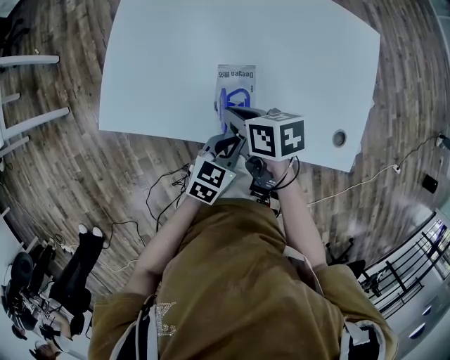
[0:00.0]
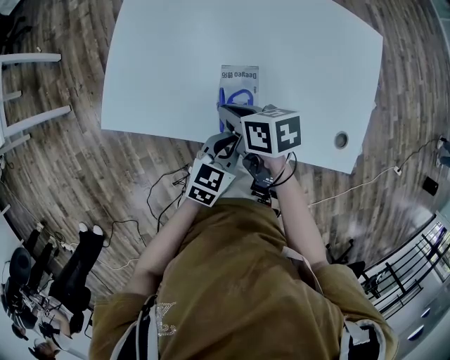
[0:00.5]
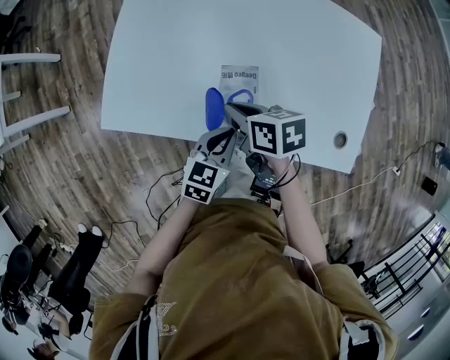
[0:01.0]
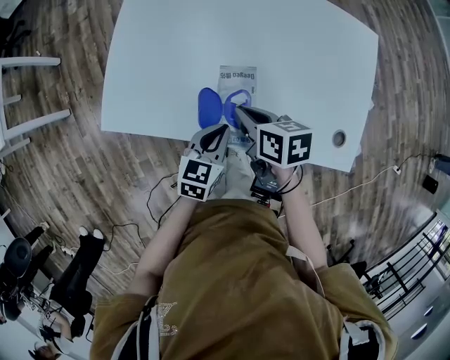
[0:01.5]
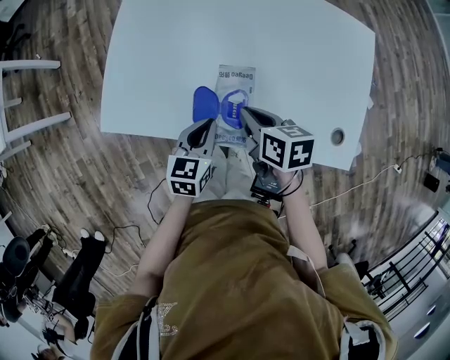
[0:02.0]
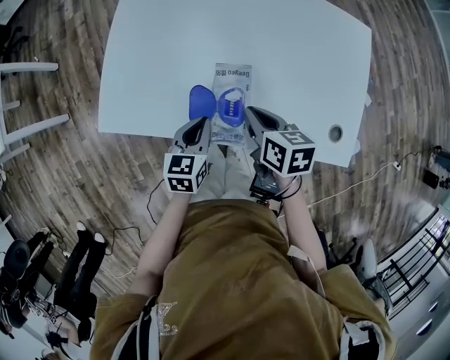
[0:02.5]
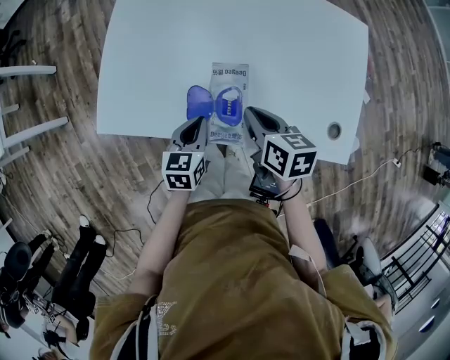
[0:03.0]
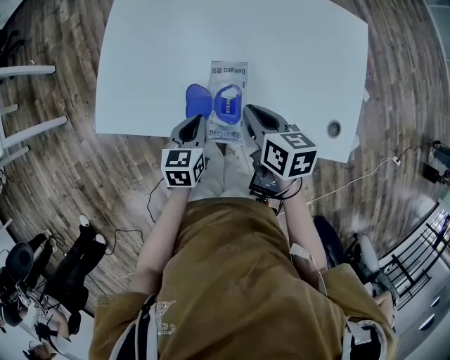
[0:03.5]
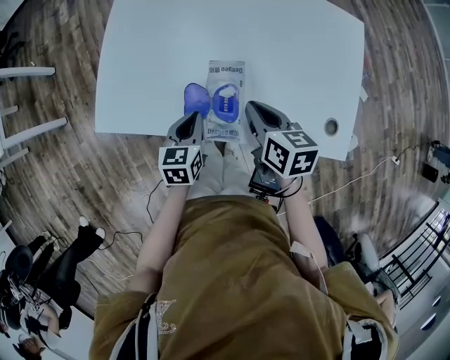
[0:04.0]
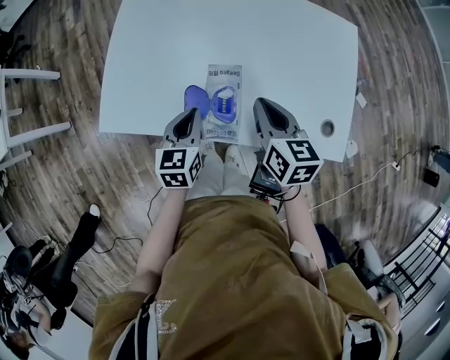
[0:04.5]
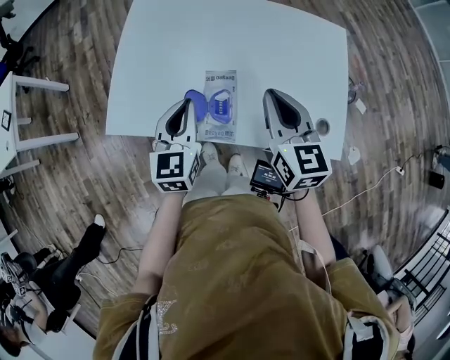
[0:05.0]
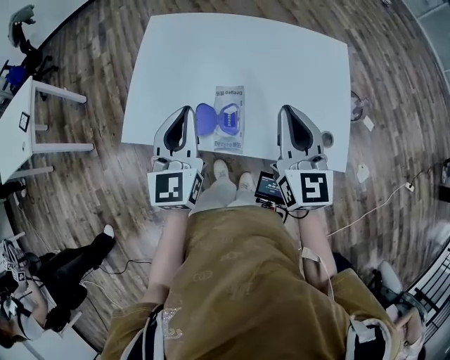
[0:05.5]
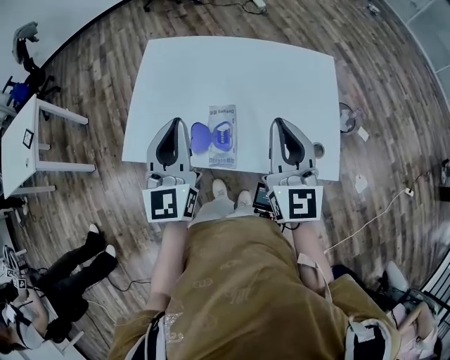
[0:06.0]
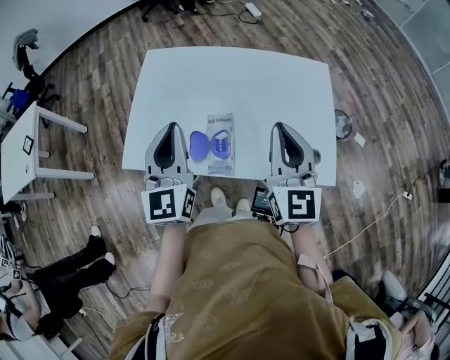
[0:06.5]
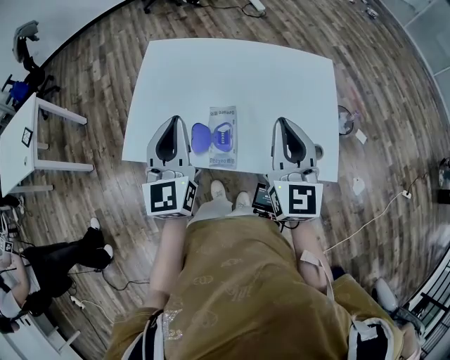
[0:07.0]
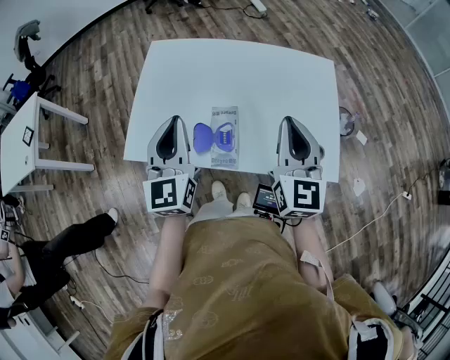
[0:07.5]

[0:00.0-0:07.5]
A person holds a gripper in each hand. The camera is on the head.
0:00.0 to 0:02.0: The left gripper is displaced to the left and forward by some 10 cm.
0:02.0 to 0:04.0: The grippers move only a little.
0:04.0 to 0:05.5: Both grippers move upward, about 25 cm. The left gripper tilts its fingers roughly 30 degrees upward, while the right gripper points its fingers about 30 degrees further upward.
0:05.5 to 0:07.5: The grippers make only small movements.

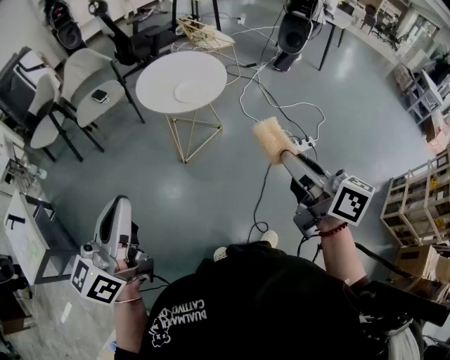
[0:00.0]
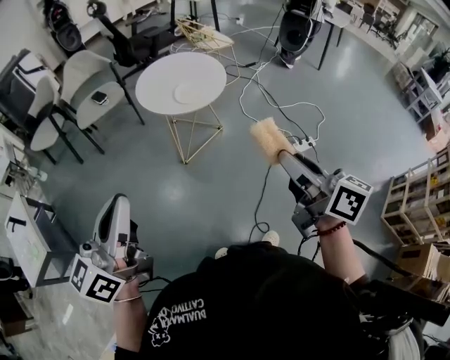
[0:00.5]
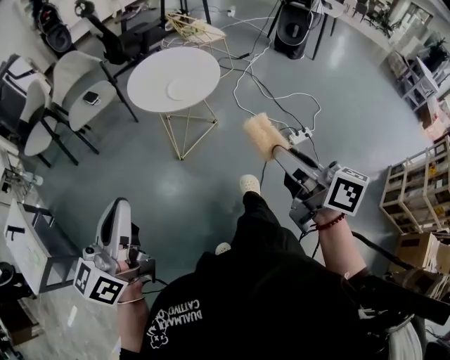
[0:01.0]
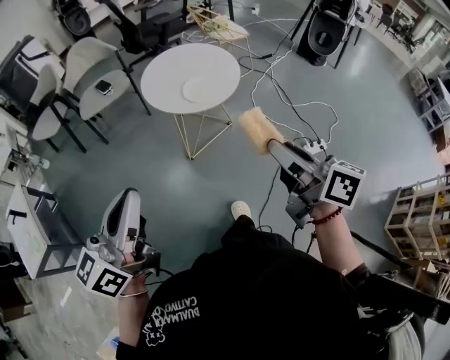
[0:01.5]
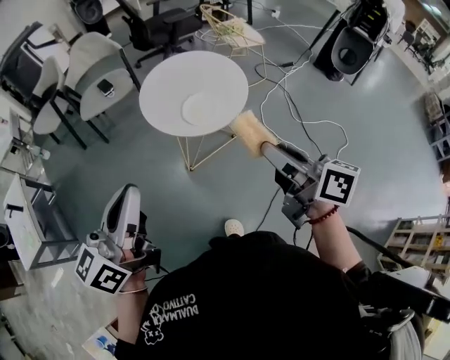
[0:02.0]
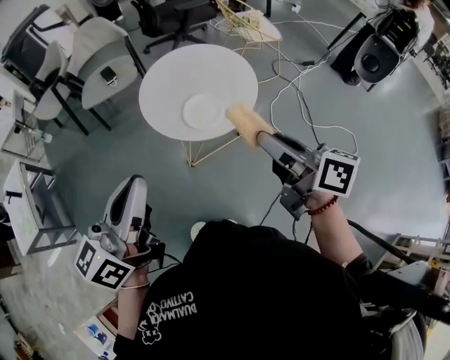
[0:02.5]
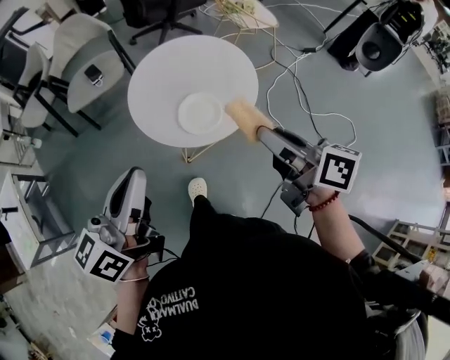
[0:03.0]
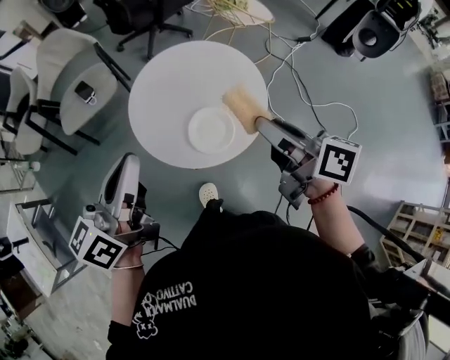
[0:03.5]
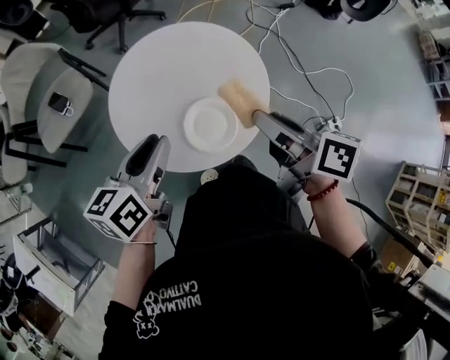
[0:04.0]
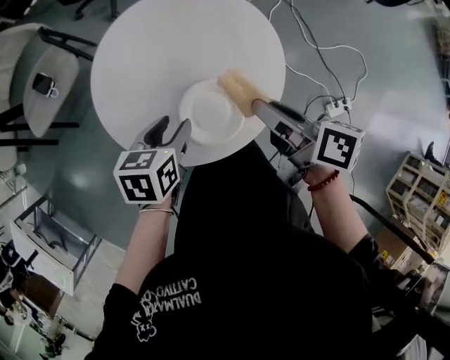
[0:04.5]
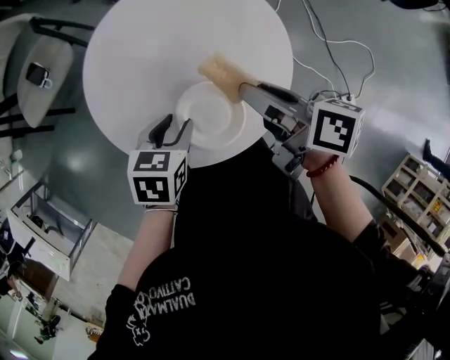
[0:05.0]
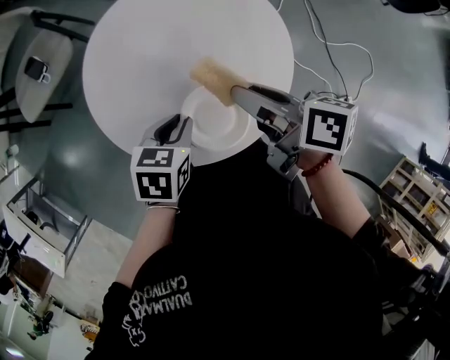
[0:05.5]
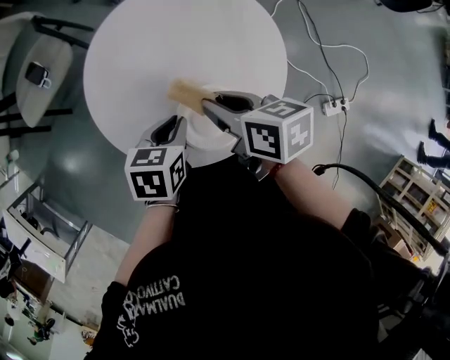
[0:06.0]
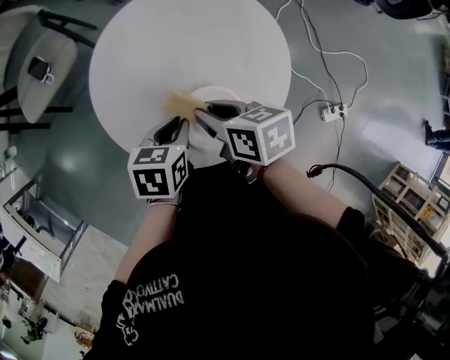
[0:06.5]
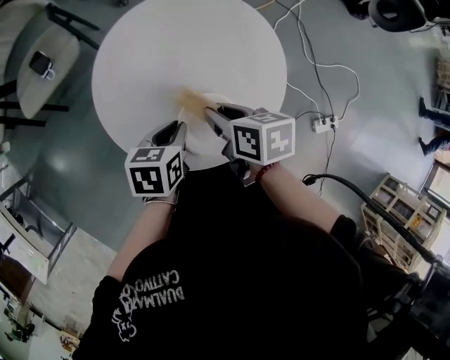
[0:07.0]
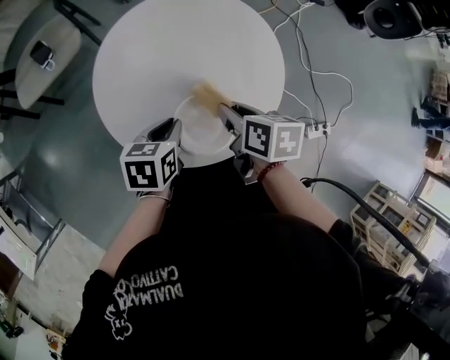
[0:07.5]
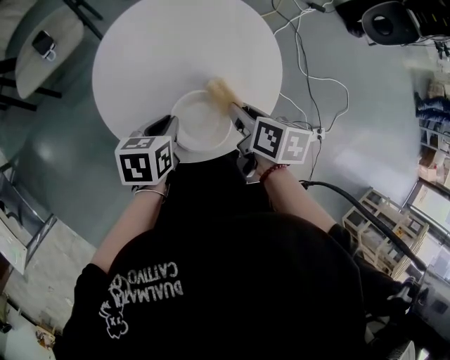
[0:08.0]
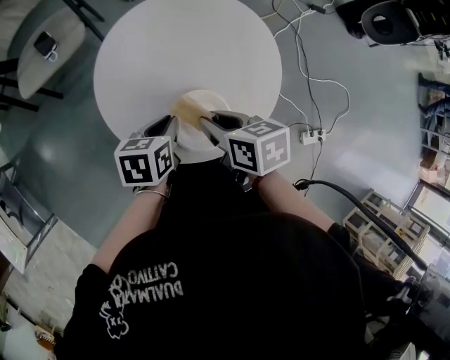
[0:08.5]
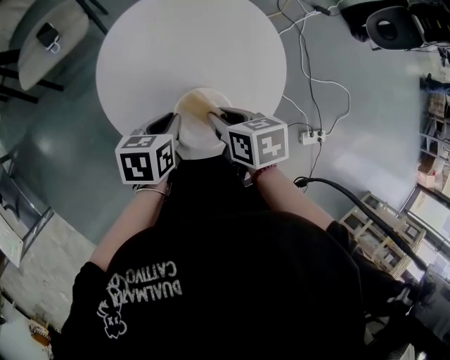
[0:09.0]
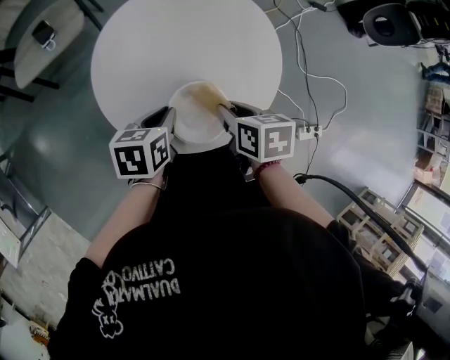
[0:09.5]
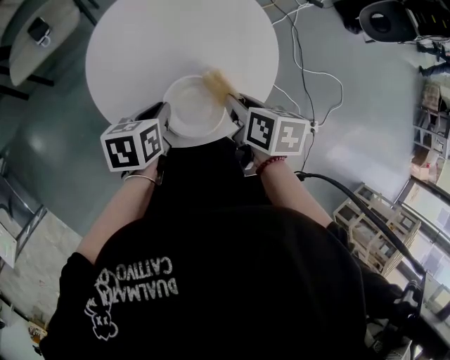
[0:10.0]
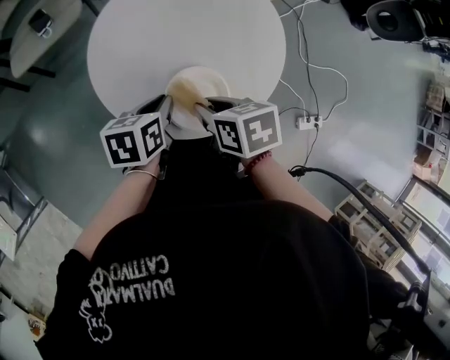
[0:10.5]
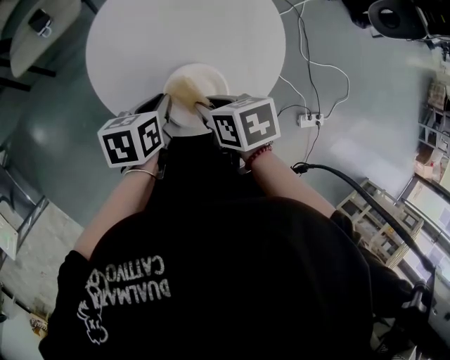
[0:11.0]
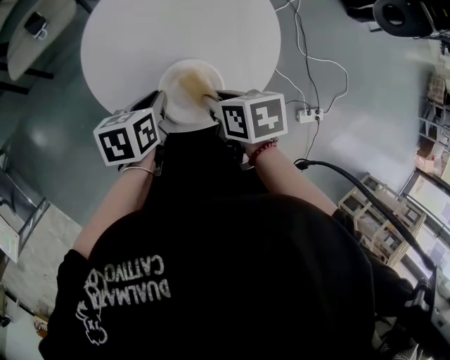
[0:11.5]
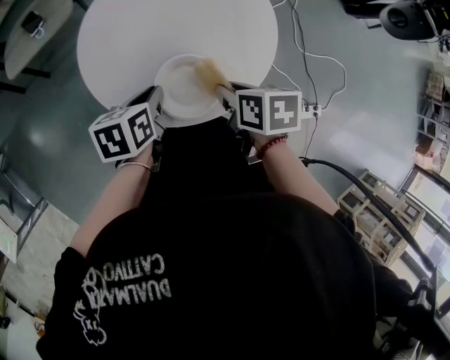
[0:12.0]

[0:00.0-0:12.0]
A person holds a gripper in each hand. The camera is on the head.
0:00.0 to 0:02.0: The two grippers go some 25 cm forward.
0:02.0 to 0:04.0: The two grippers go about 40 cm forward and downward. The left gripper rotates about 30 degrees, and opens.
0:04.0 to 0:06.0: The right gripper travels downward and forward by about 15 cm, and swivels approximately 30 degrees. The left gripper heads downward and to the right, covering roughly 20 cm, tips its fingers downward by approximately 30 degrees, and opens, then closes once more.
0:06.0 to 0:08.0: The right gripper moves roughly 5 cm, and swivels some 20 degrees.
0:08.0 to 0:10.0: The right gripper goes to the left and returns, some 10 cm each way.
0:10.0 to 0:12.0: The right gripper reaches about 10 cm to the left, then returns.

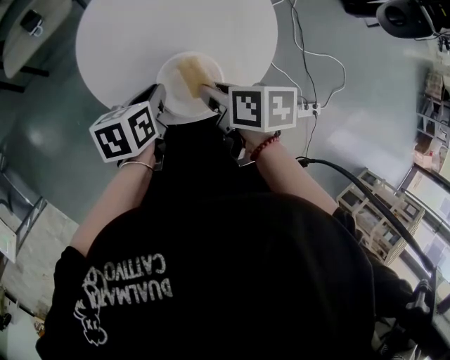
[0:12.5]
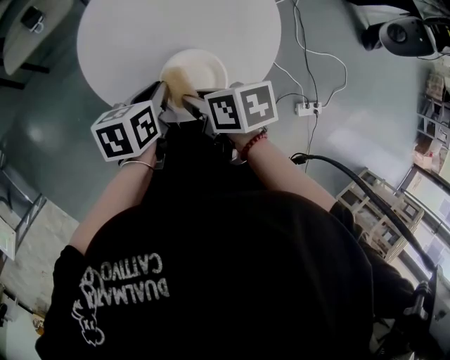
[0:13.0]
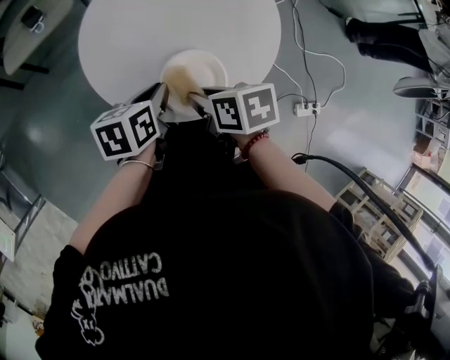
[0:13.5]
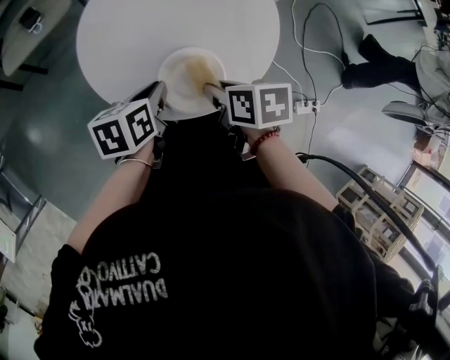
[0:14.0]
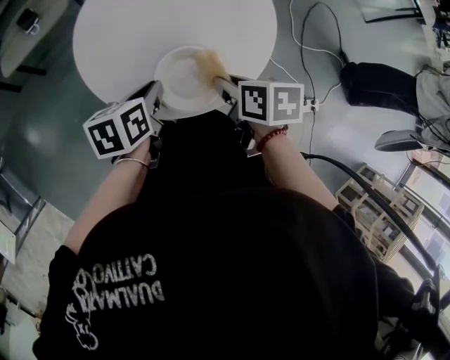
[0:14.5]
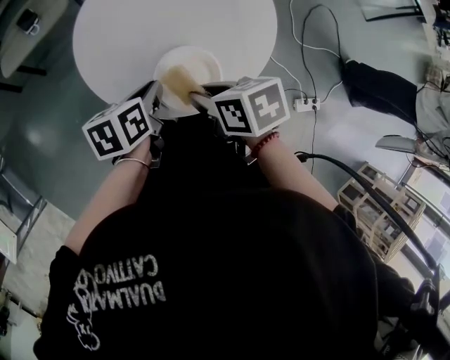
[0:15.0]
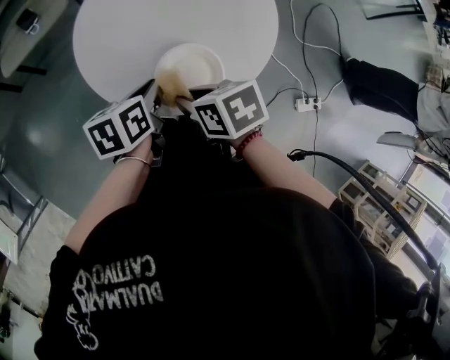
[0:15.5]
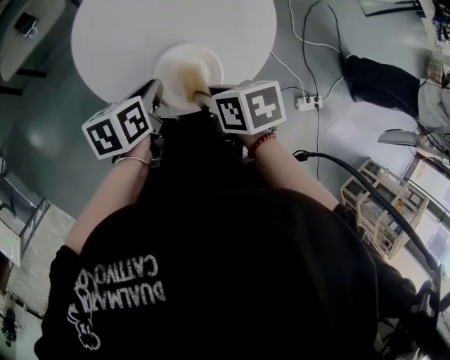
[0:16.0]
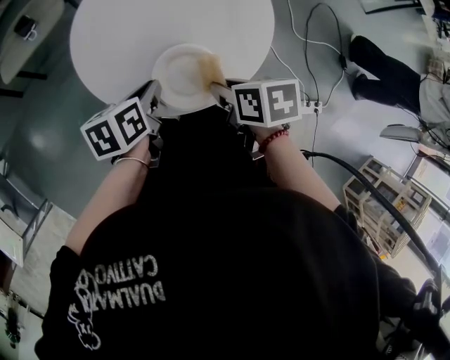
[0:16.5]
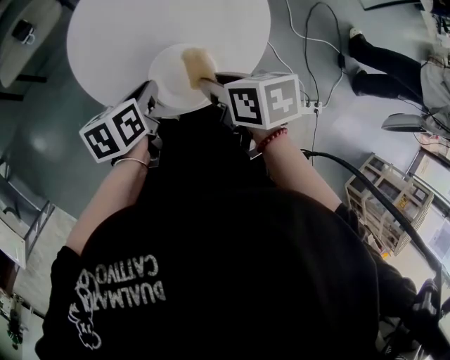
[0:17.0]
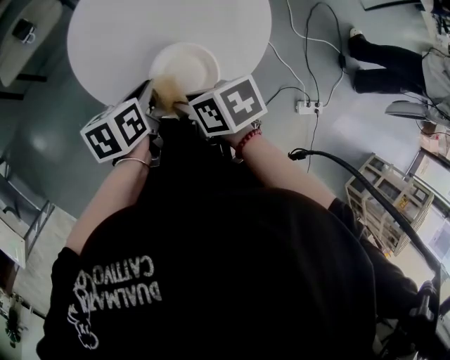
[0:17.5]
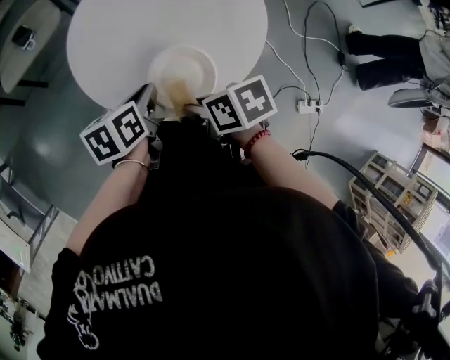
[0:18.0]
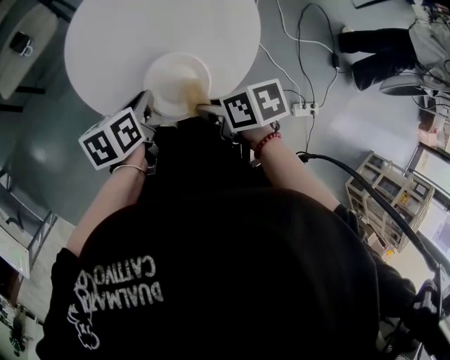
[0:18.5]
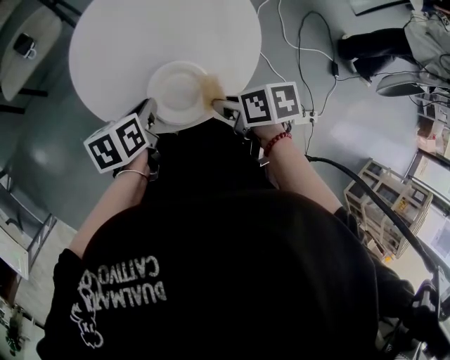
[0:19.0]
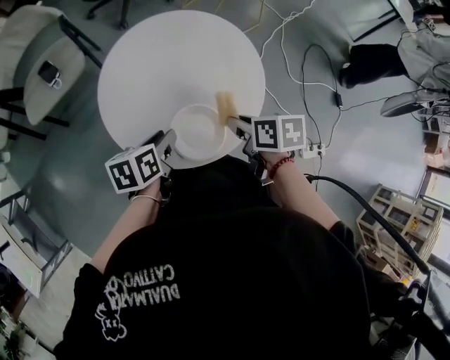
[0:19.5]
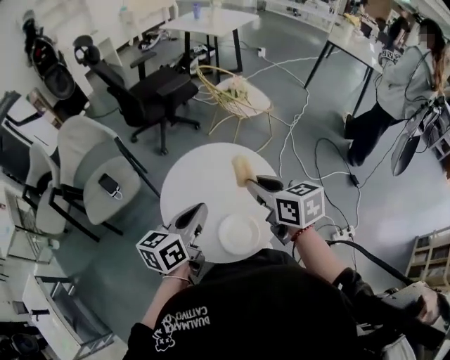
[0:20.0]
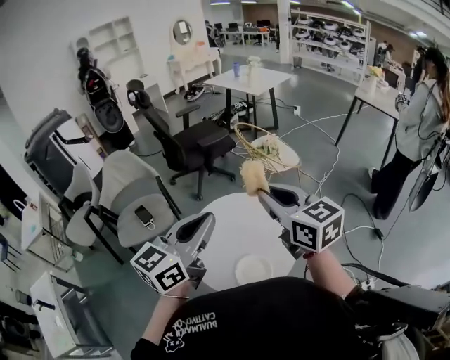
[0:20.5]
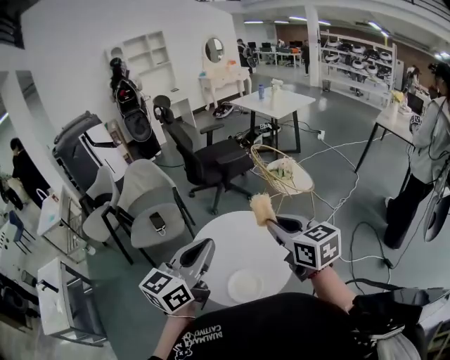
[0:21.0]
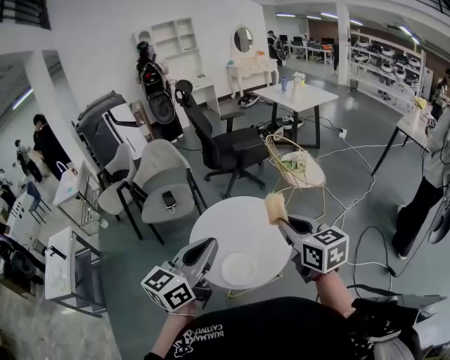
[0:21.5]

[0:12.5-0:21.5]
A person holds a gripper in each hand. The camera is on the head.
0:12.5 to 0:14.5: There are only small adjustments of the grippers.
0:14.5 to 0:17.0: The right gripper travels to the left and back again, approximately 10 cm each way.
0:17.0 to 0:19.5: The left gripper opens up. The right gripper heads to the right, covering about 5 cm.
0:19.5 to 0:21.5: The left gripper is displaced upward and backward by some 40 cm, tips its fingers upward by roughly 50 degrees, and closes its fingers, while the right gripper heads upward, covering approximately 35 cm, and points its fingers some 40 degrees further upward.
